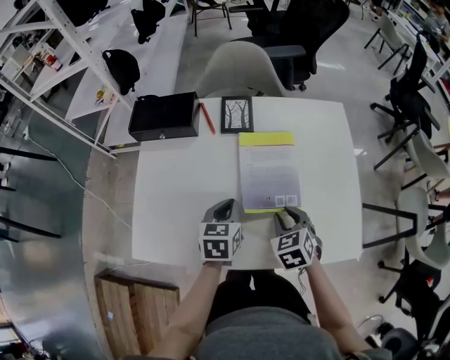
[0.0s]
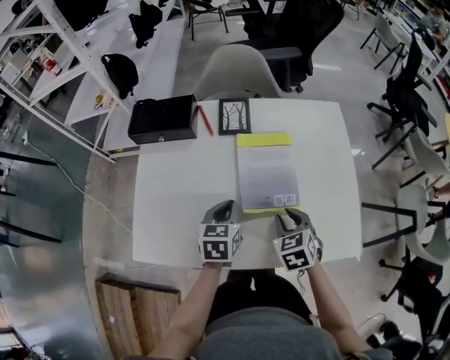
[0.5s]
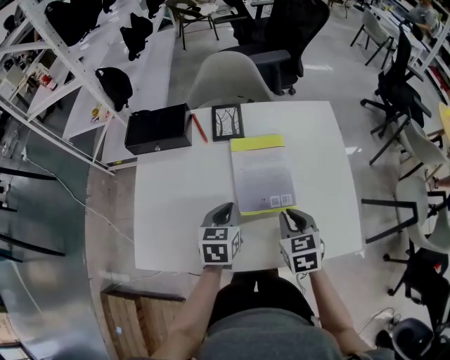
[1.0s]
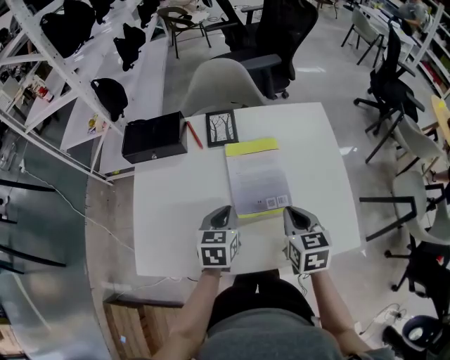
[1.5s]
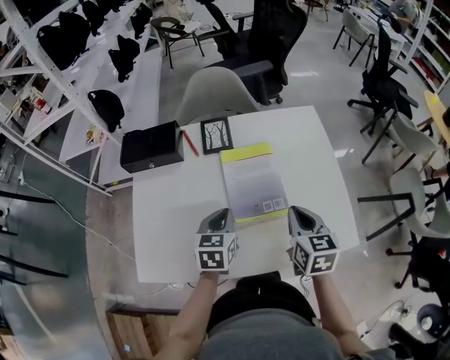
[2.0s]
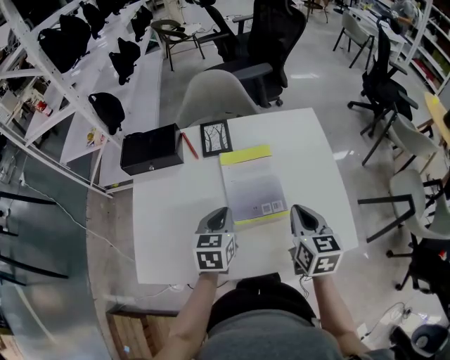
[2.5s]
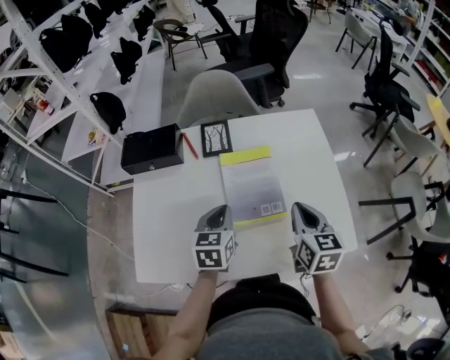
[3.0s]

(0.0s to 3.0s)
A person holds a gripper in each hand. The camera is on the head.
0.0s - 1.5s: The right gripper is displaced upward by roughly 5 cm, swivels roughly 30 degrees, and closes.
1.5s - 3.0s: The right gripper changes place by roughly 5 cm.

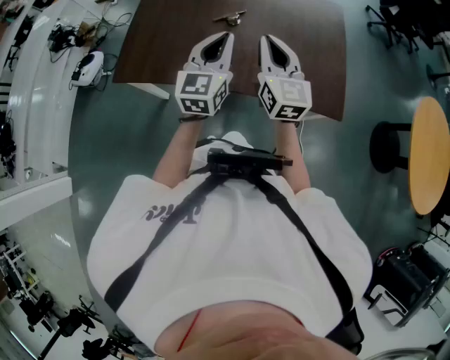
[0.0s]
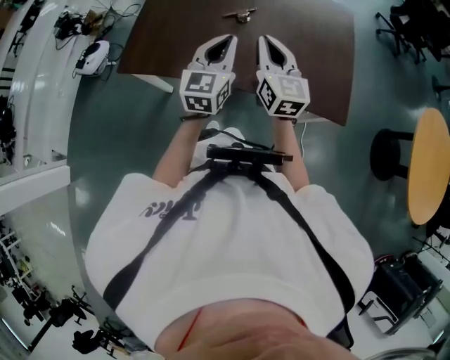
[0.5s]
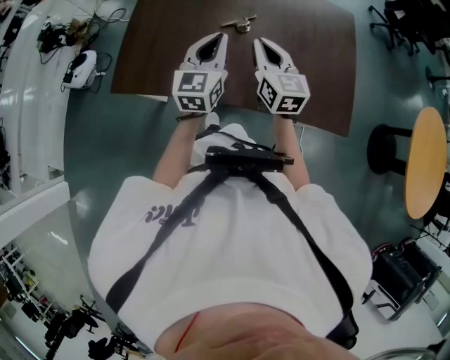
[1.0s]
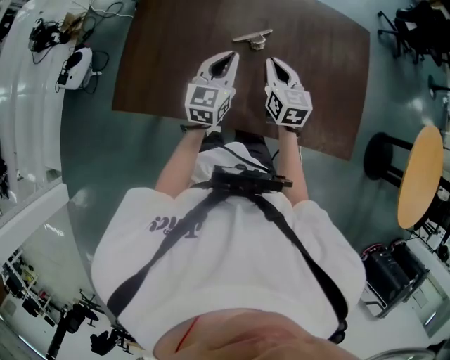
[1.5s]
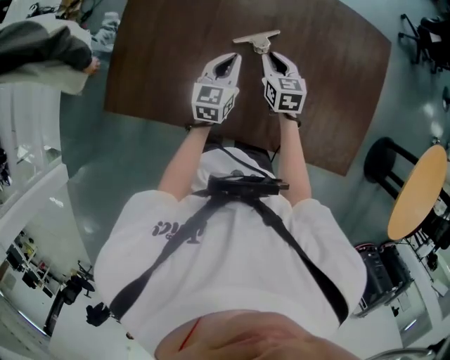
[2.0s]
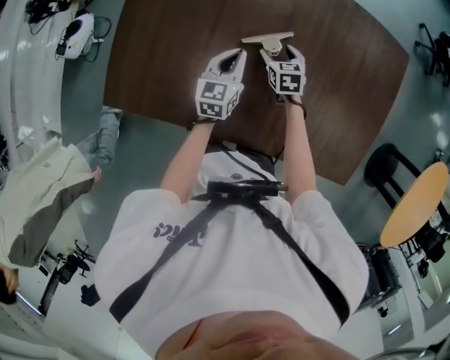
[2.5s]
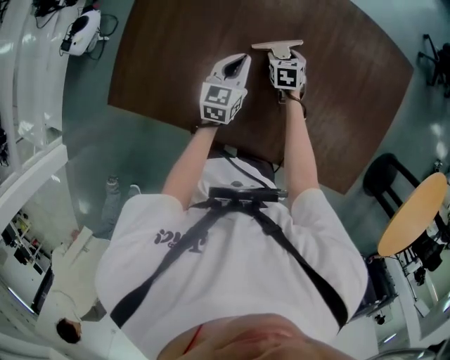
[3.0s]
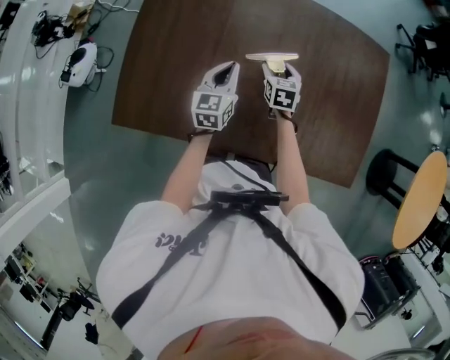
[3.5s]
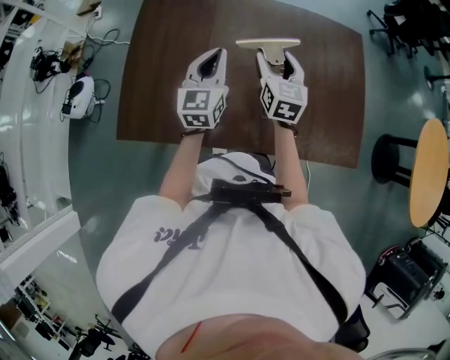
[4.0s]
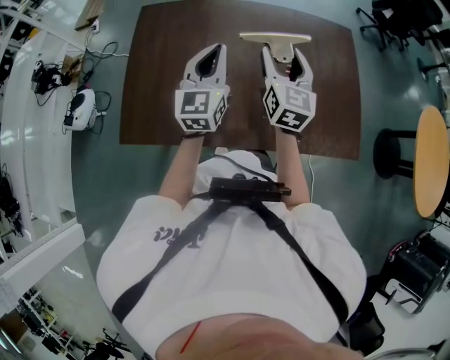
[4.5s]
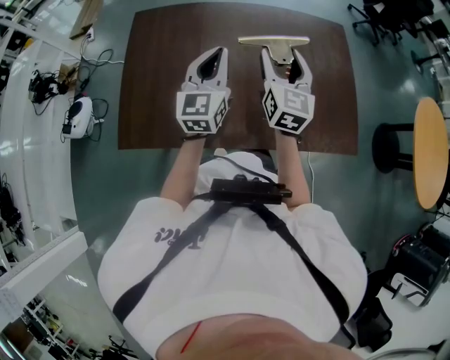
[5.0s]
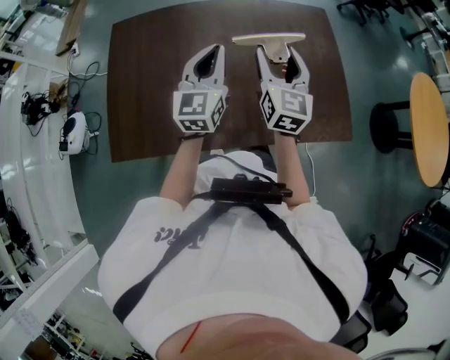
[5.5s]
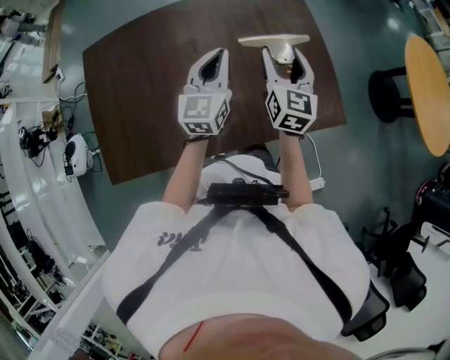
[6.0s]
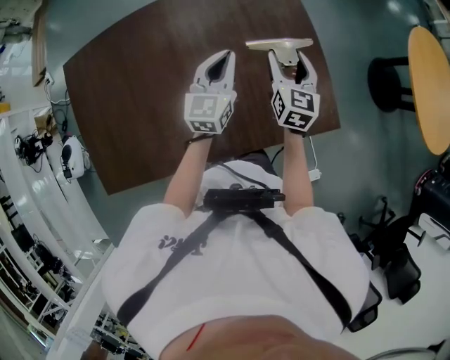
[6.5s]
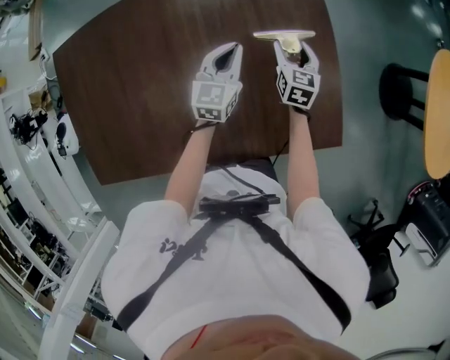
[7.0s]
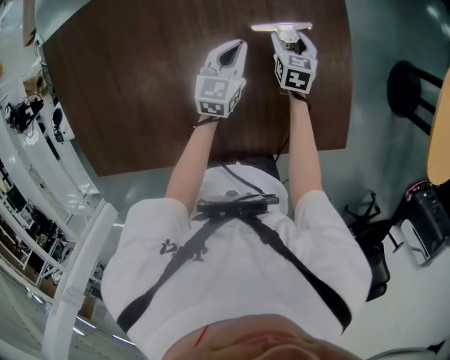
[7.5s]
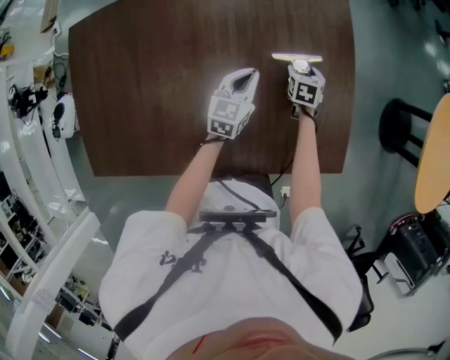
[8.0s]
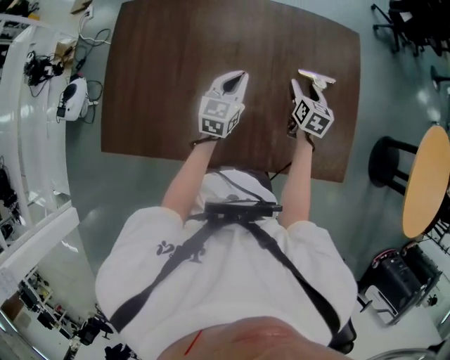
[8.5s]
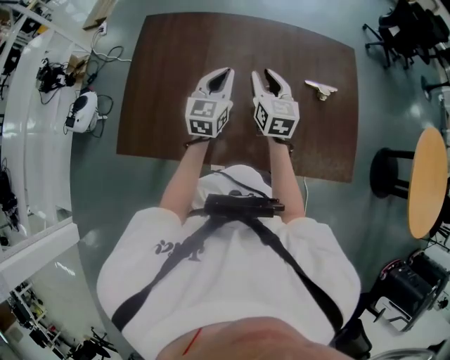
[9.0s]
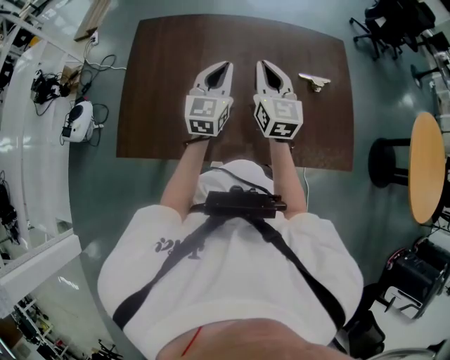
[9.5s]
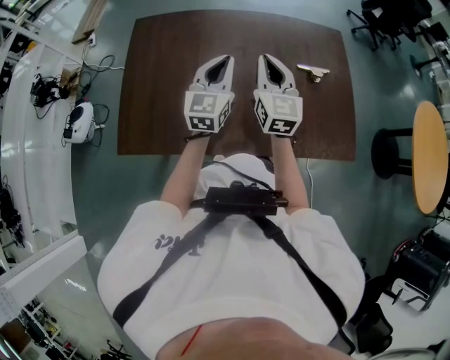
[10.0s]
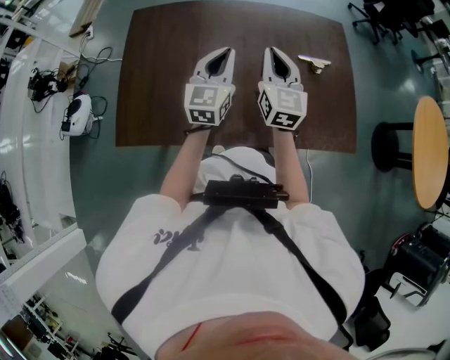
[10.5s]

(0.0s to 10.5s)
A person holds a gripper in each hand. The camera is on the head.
0.0s - 2.0s: The right gripper heads forward and downward, covering about 40 cm, and angles its fingers downward, by about 40 degrees; the left gripper travels forward, downward and to the left by approximately 40 cm, and turns by roughly 20 degrees.
2.0s - 4.0s: The grippers both shift upward by about 15 cm. The right gripper changes its angle by roughly 30 degrees, and opens up.
4.0s - 6.5s: Both grippers move to the right, approximately 30 cm. The left gripper turns by roughly 30 degrees. Meanwhile the right gripper turns by roughly 20 degrees.
6.5s - 8.5s: The right gripper travels to the left and downward by some 15 cm, and rotates about 20 degrees; the left gripper shifts roughly 15 cm to the left, and travels downward and back again, approximately 15 cm each way.
8.5s - 10.5s: The right gripper moves upward, to the left and backward, roughly 30 cm, angles its fingers upward, by some 30 degrees, and closes up, while the left gripper moves upward, backward and to the left, about 20 cm.

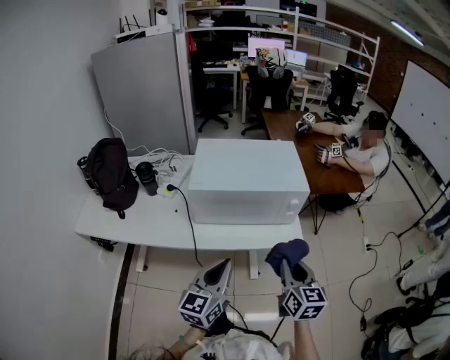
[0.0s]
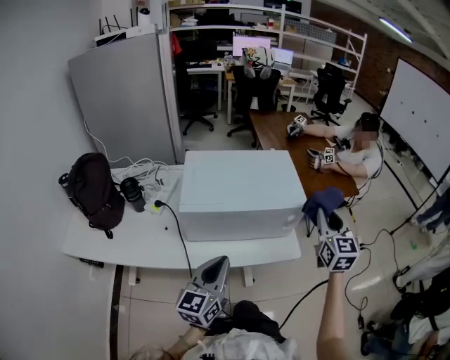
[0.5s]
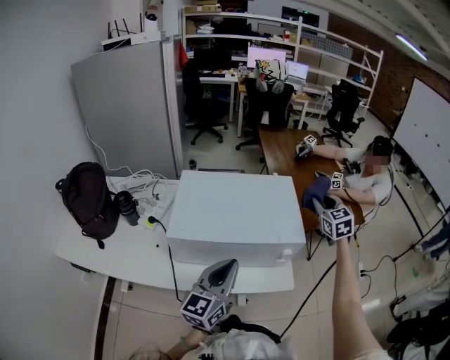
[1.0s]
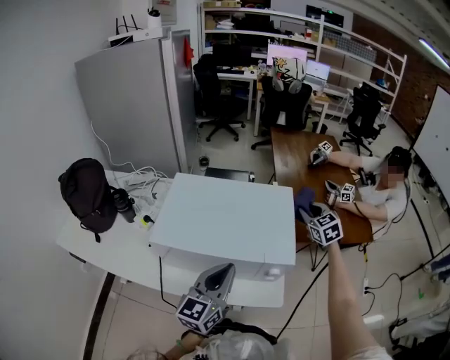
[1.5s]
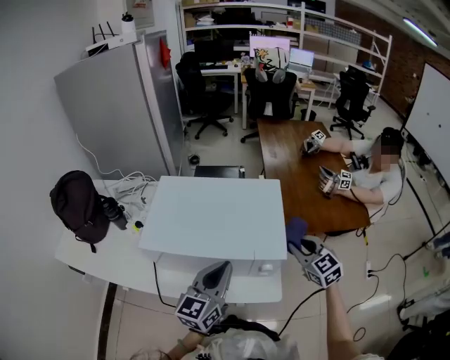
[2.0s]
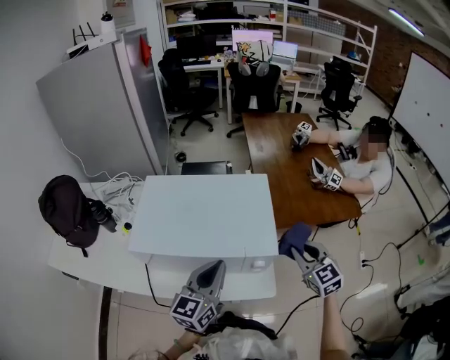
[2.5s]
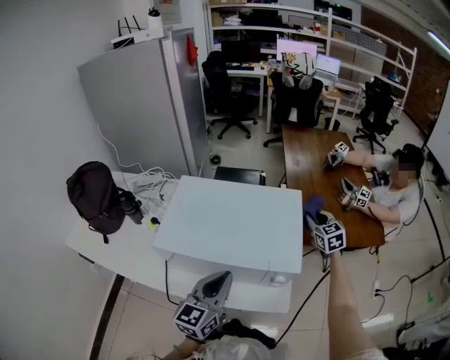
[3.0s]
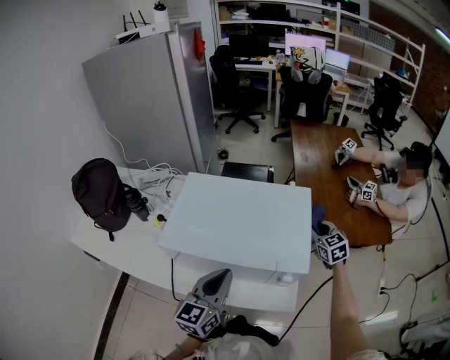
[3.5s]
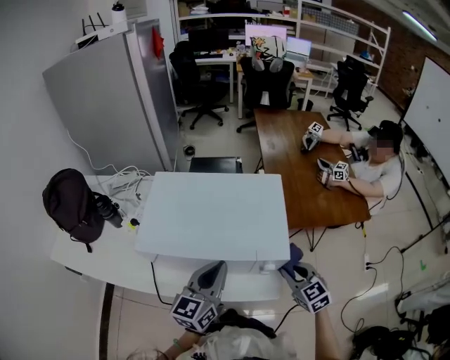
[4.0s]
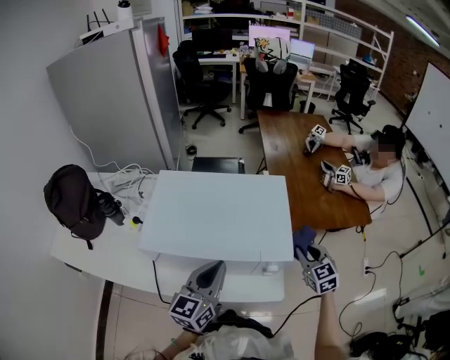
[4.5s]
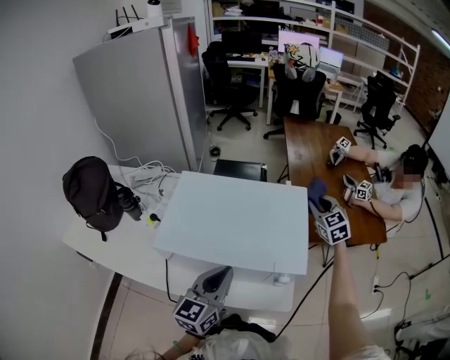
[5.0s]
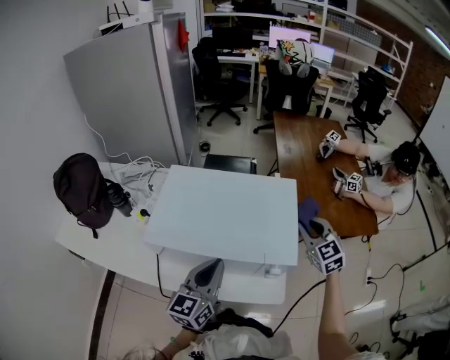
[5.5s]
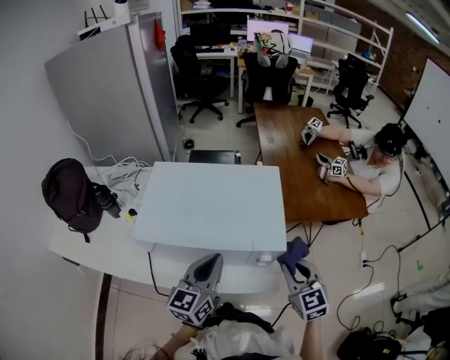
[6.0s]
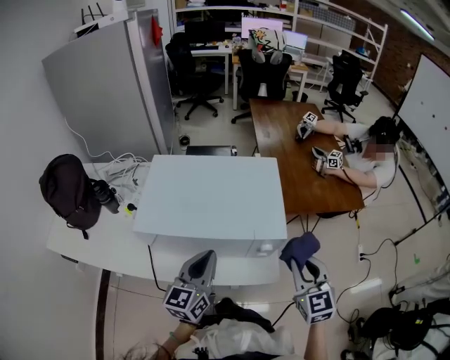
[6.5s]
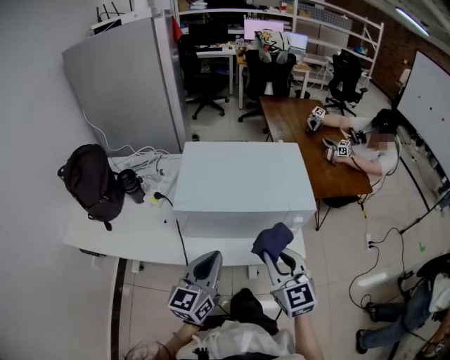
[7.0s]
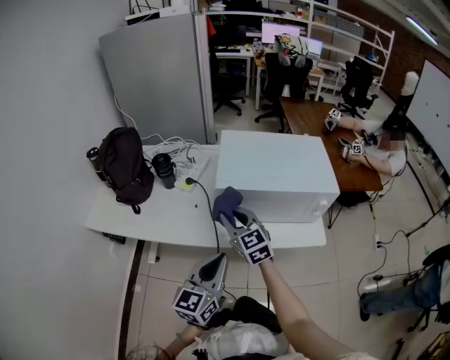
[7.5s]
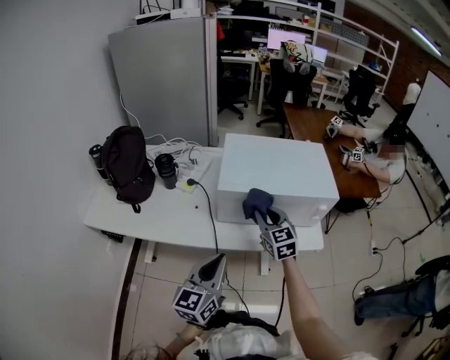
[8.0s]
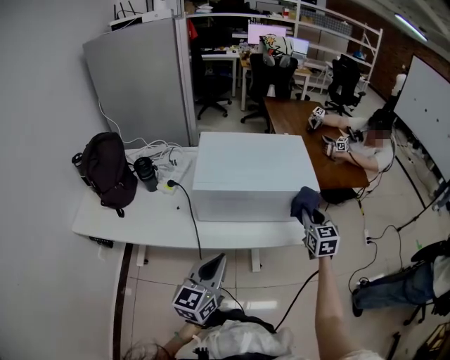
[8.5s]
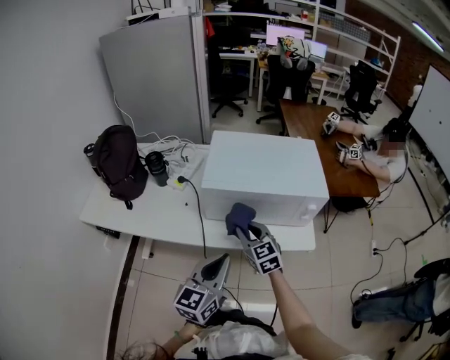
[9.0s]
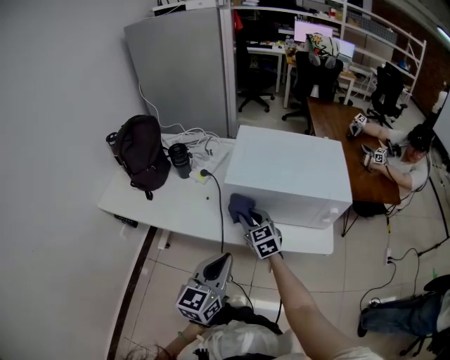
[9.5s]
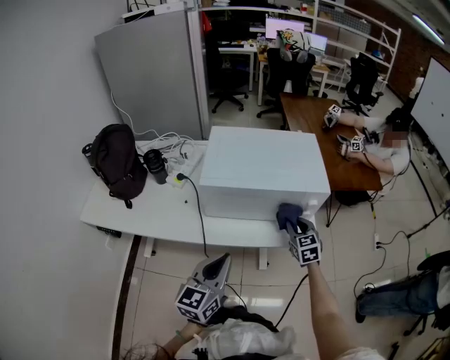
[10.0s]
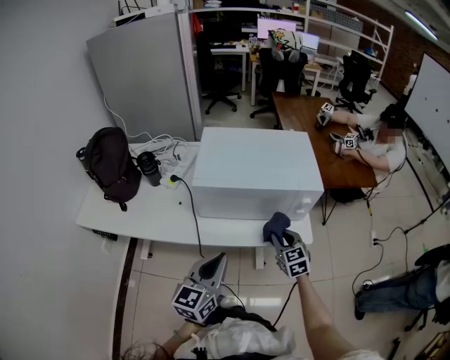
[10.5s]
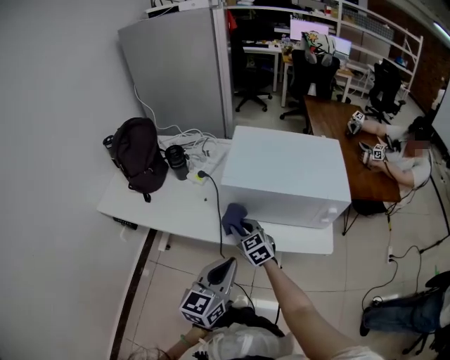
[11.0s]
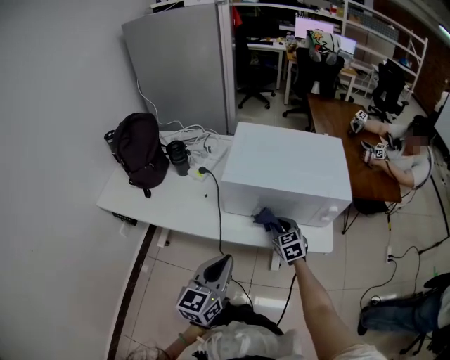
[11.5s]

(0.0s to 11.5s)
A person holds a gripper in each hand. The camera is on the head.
0.0s - 2.0s: The right gripper moves forward, about 35 cm, and swivels approximately 40 degrees. The left gripper travels forward and to the right by about 25 cm.
2.0s - 4.0s: The right gripper goes forward and backward, some 25 cm each way, reversing 2 times.
4.0s - 6.0s: The right gripper heads upward, covering about 5 cm, and goes forward and returns, roughly 25 cm each way.
6.0s - 7.5s: The right gripper is displaced to the left by roughly 40 cm. The left gripper moves to the left and backward, about 30 cm.
7.5s - 9.5s: The right gripper goes approximately 10 cm downward, and goes to the right and returns, approximately 35 cm each way.
9.5s - 11.5s: The right gripper swings left and right, about 30 cm each way, with 2 reversals.

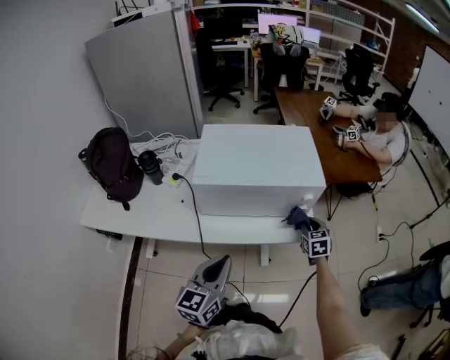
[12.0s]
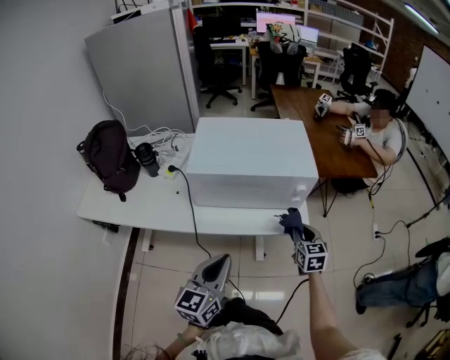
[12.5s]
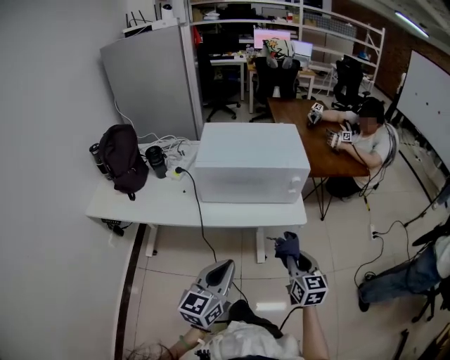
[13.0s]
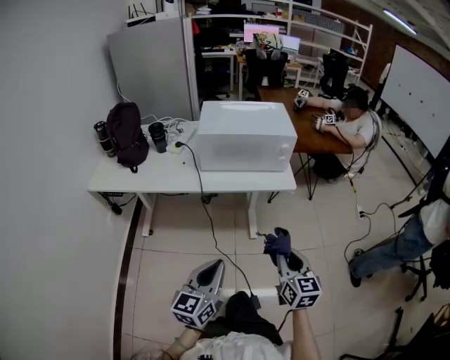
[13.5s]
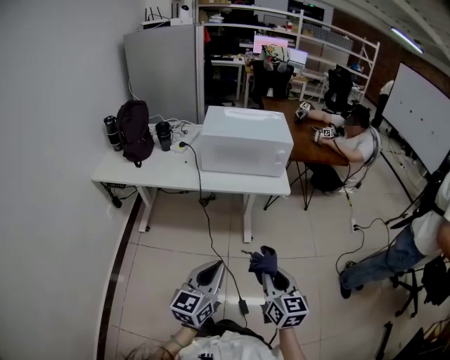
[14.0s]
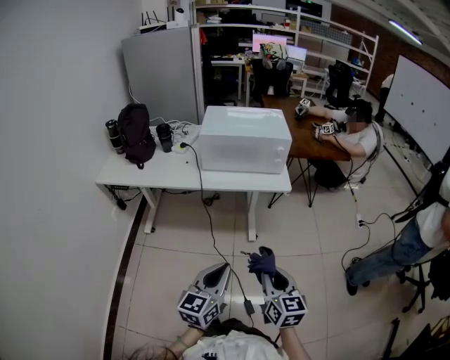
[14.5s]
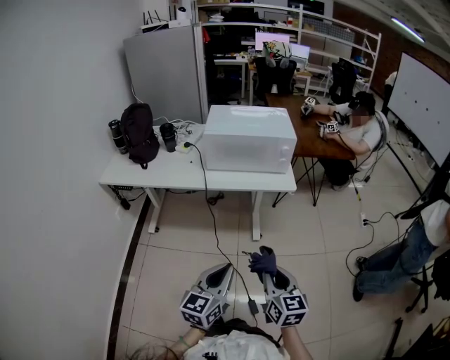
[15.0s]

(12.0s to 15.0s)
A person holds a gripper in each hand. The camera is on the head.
12.0s - 13.5s: The left gripper travels backward by approximately 30 cm. The right gripper goes some 40 cm backward, and swivels approximately 30 degrees.
13.5s - 15.0s: The left gripper goes roughly 5 cm to the right. Meanwhile the right gripper goes roughly 10 cm backward.
